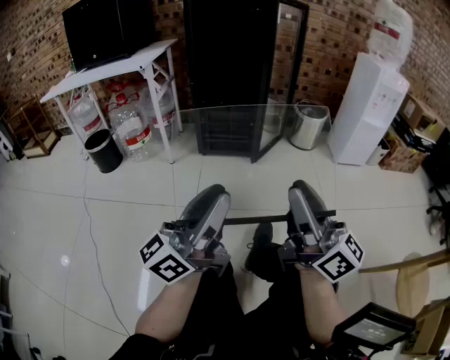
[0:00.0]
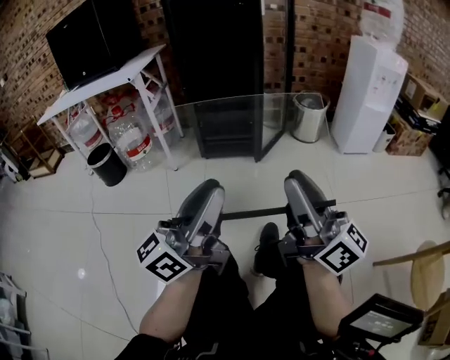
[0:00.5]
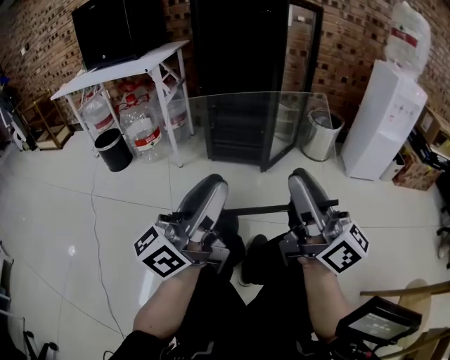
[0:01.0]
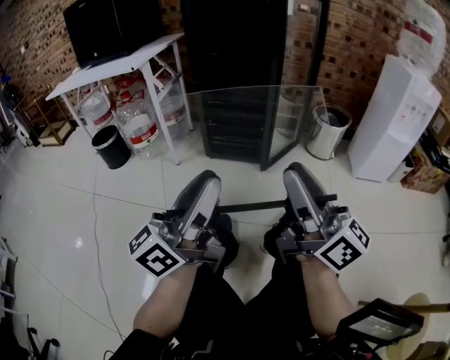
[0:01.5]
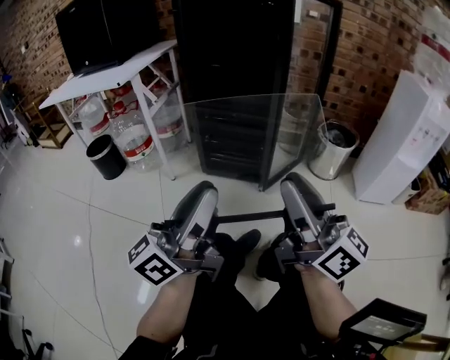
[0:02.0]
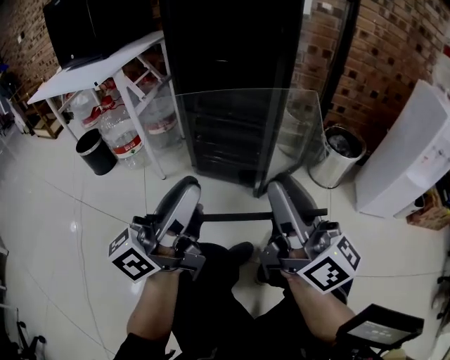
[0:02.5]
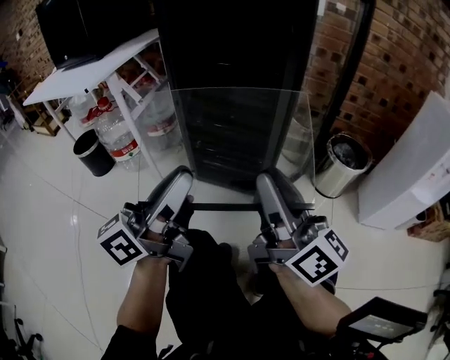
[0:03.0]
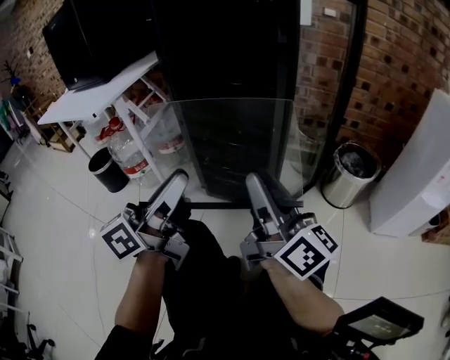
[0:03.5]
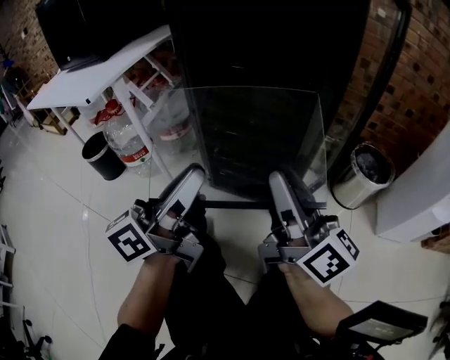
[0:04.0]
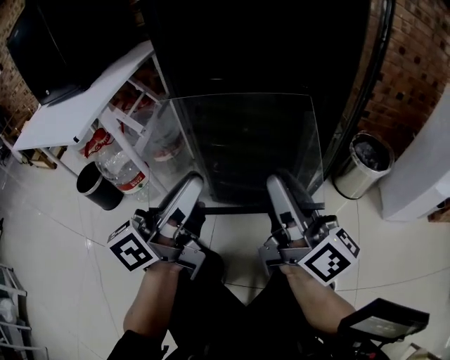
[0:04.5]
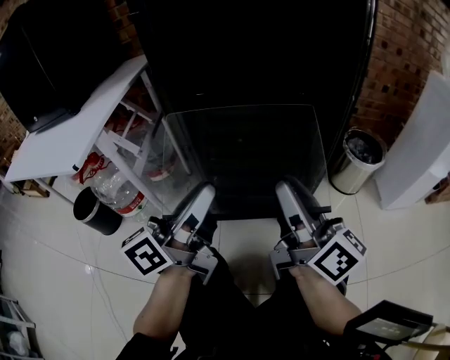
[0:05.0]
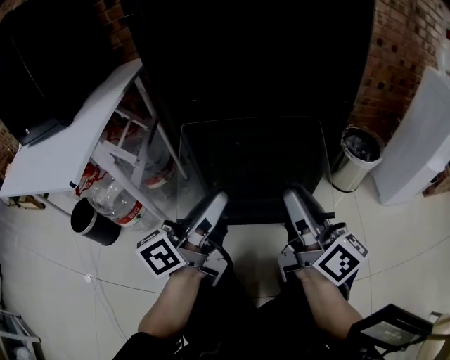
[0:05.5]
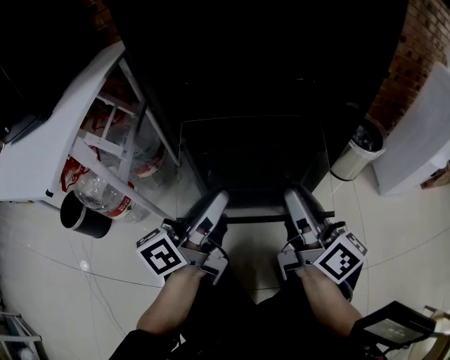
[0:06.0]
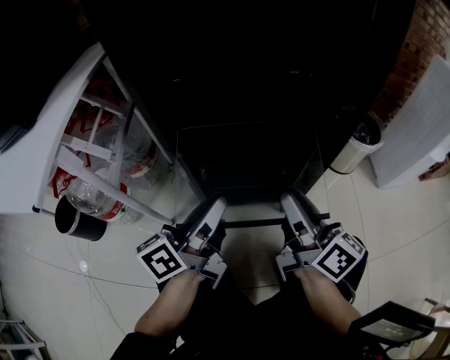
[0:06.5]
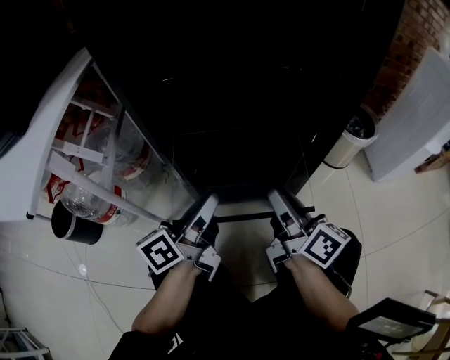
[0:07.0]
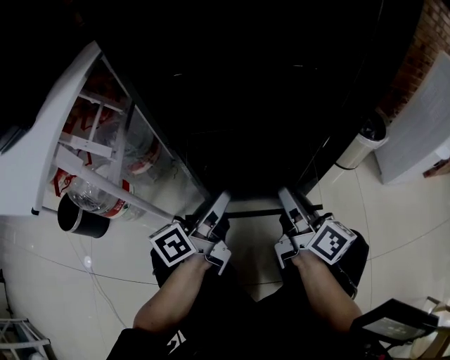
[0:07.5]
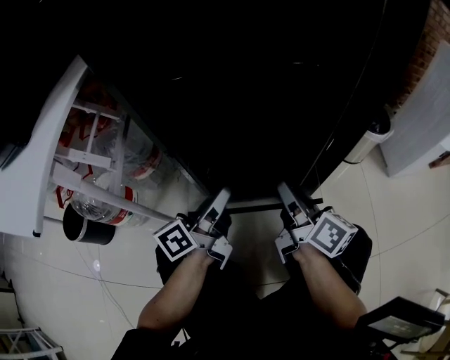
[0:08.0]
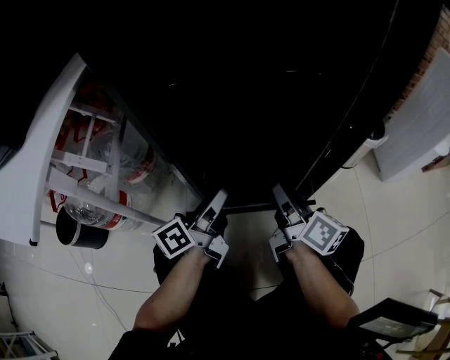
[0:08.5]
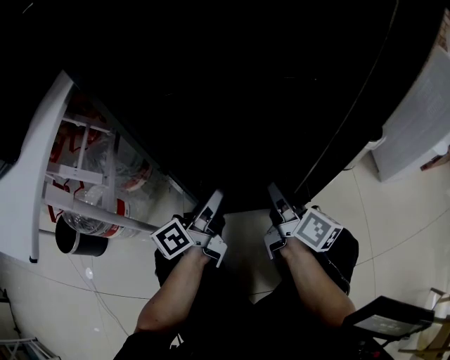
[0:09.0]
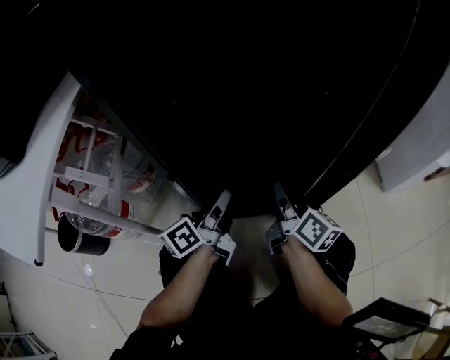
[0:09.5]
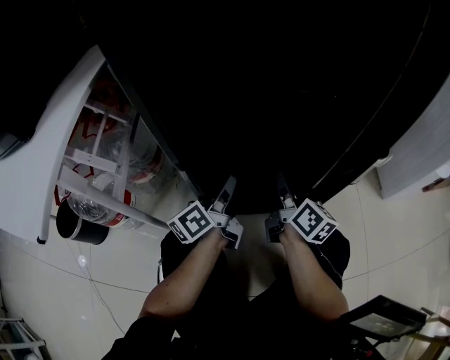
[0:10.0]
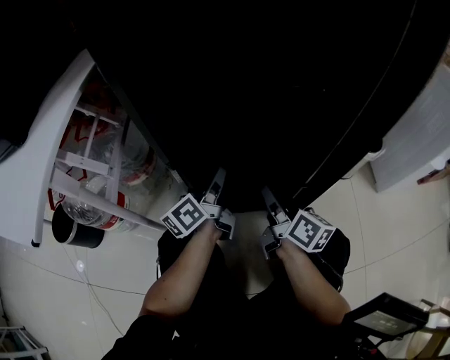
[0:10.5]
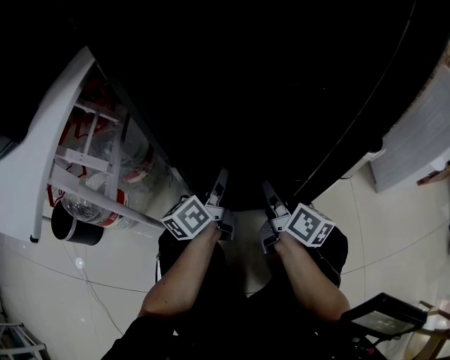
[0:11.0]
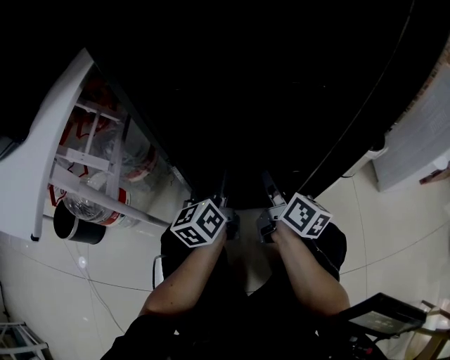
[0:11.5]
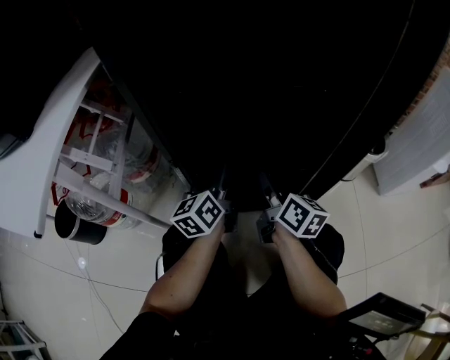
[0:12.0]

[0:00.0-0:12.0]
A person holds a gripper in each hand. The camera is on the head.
0:00.0 to 0:02.0: Both grippers move forward, roughly 25 cm.
0:02.0 to 0:04.0: The two grippers go about 25 cm forward.
0:04.0 to 0:06.0: The right gripper heads downward and forward, covering roughly 10 cm, and rotates some 20 degrees. Meanwhile the left gripper travels forward, downward and to the left by about 15 cm, and rotates roughly 20 degrees.
0:06.0 to 0:08.0: The two grippers go approximately 15 cm downward and forward.
0:08.0 to 0:10.0: The two grippers go about 10 cm forward.
0:10.0 to 0:12.0: The left gripper changes its angle by some 30 degrees, and opens up.

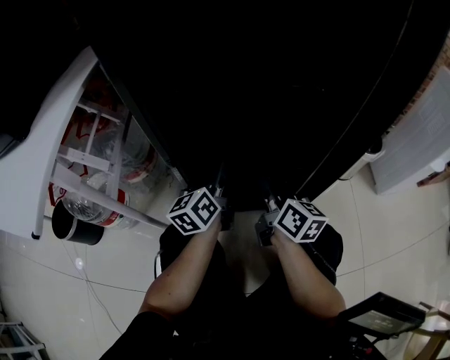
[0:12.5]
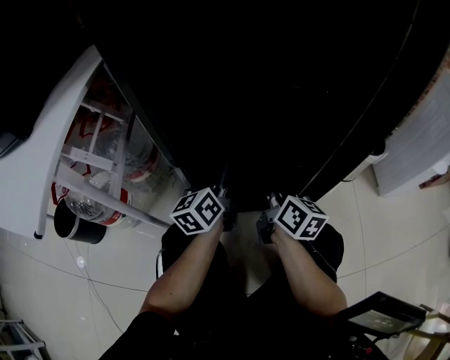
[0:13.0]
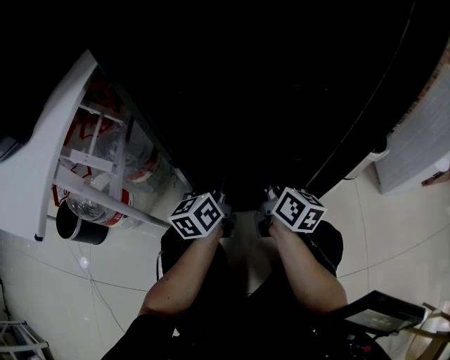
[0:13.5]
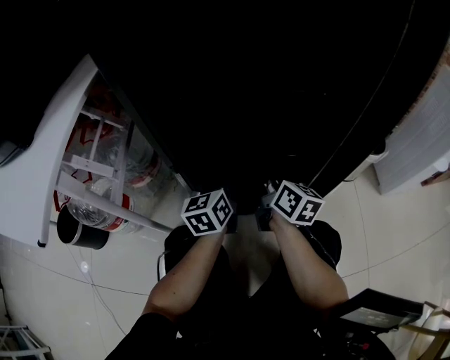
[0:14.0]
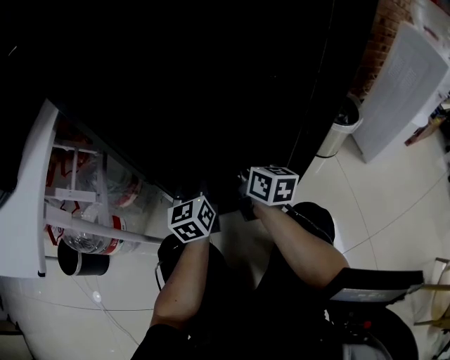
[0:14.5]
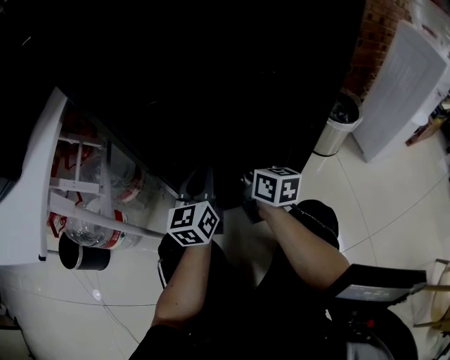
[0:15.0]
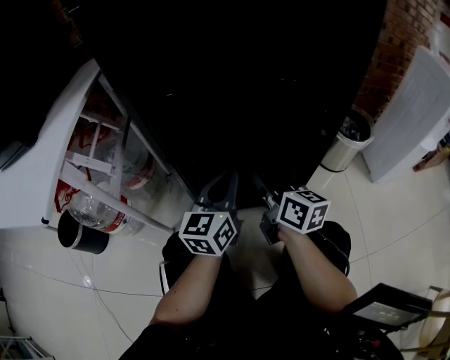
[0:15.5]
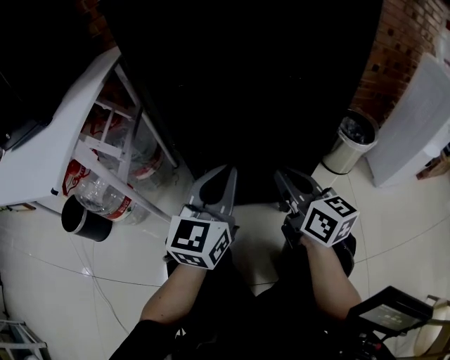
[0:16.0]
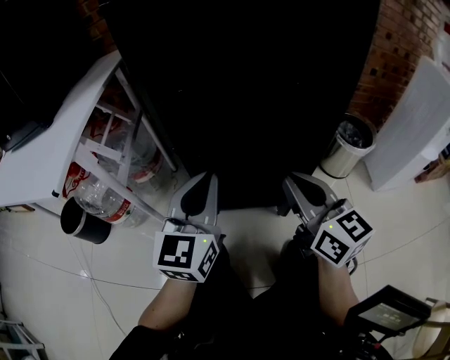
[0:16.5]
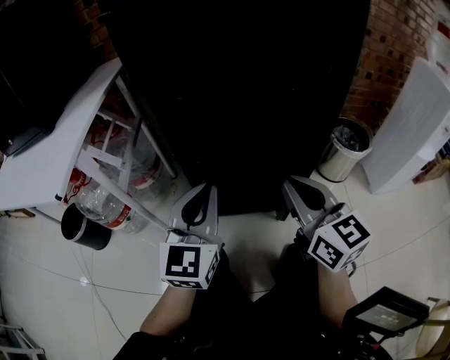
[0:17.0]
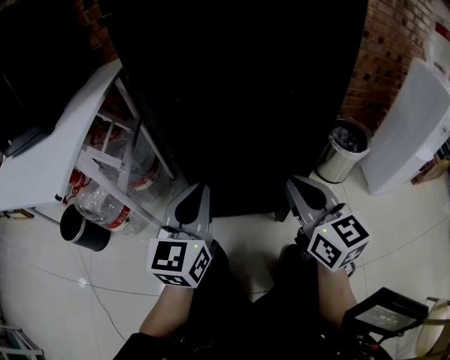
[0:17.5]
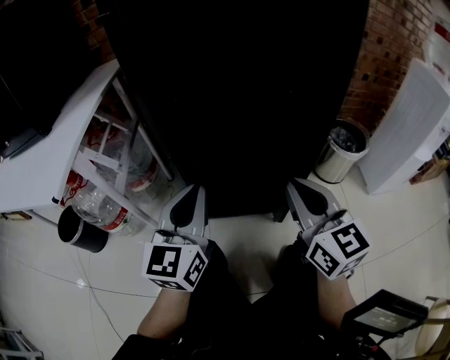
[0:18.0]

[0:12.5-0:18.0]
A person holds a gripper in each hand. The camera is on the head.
0:12.5 to 0:14.5: The right gripper moves forward, about 5 cm. The left gripper swivels approximately 20 degrees, and closes up.
0:14.5 to 0:16.0: Both grippers travel together backward and upward, some 20 cm.
0:16.0 to 0:18.0: The right gripper moves upward, approximately 5 cm, and changes its angle by roughly 20 degrees, while the left gripper shifts approximately 5 cm to the left.

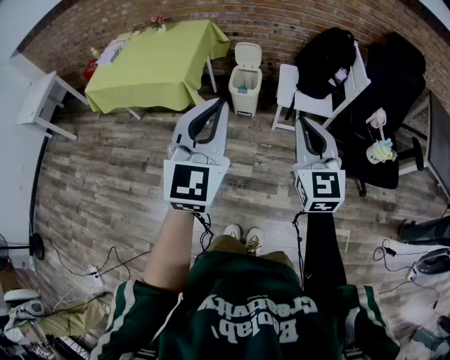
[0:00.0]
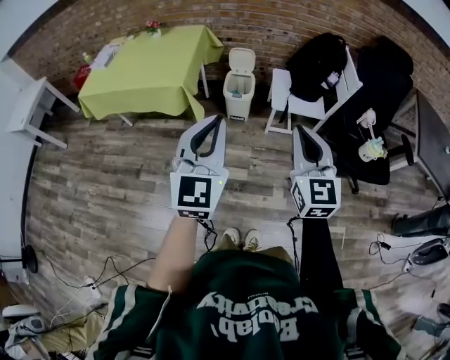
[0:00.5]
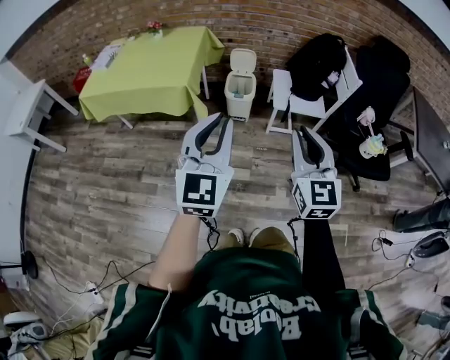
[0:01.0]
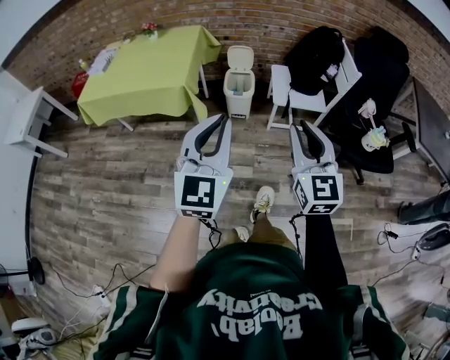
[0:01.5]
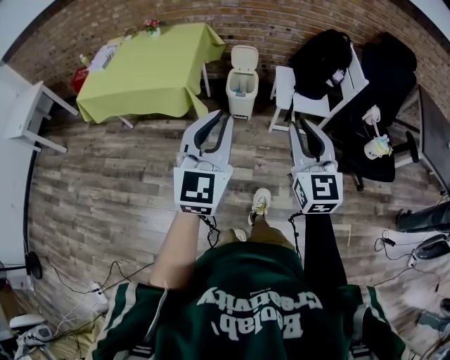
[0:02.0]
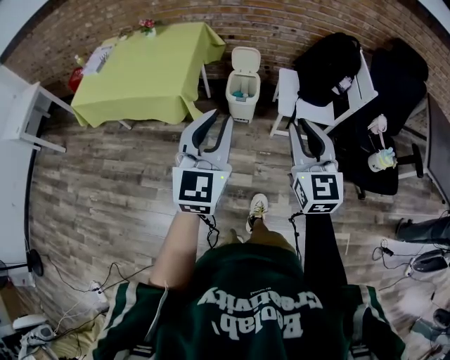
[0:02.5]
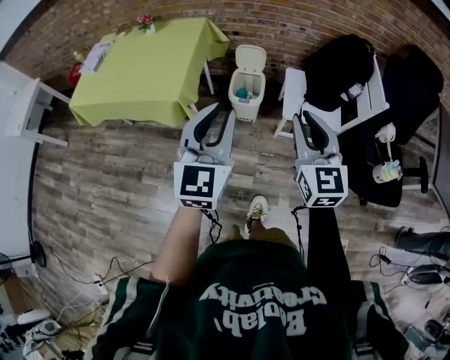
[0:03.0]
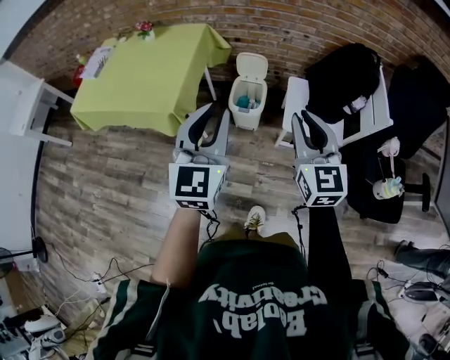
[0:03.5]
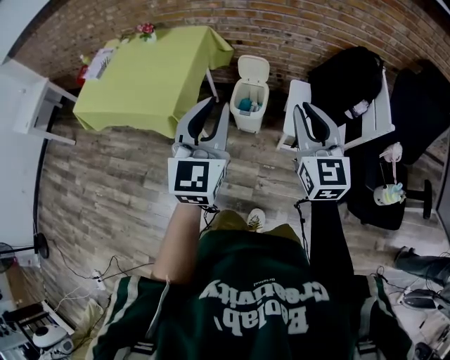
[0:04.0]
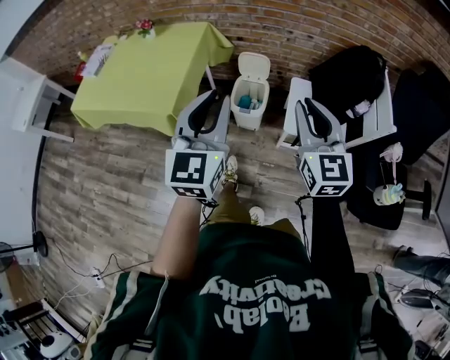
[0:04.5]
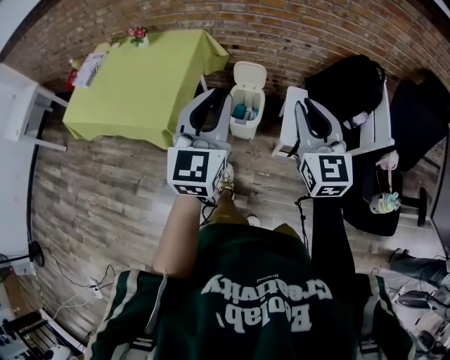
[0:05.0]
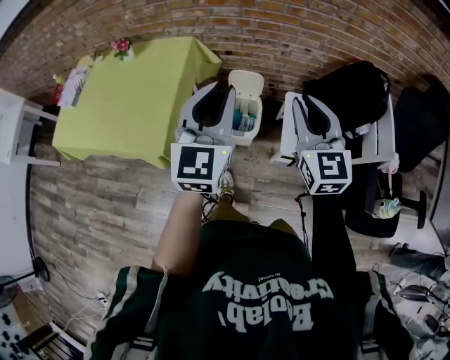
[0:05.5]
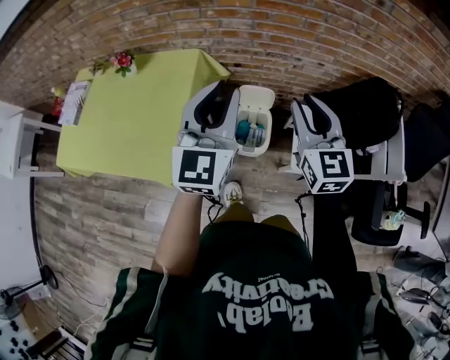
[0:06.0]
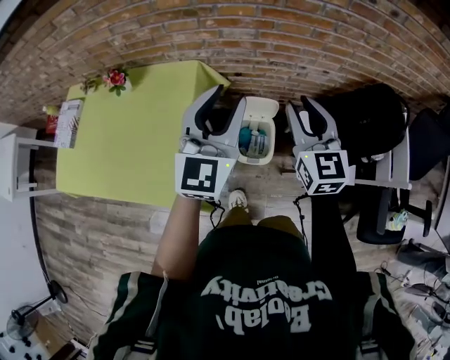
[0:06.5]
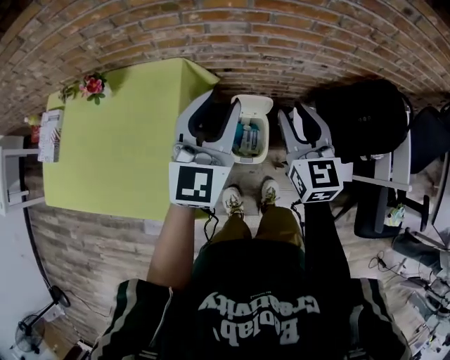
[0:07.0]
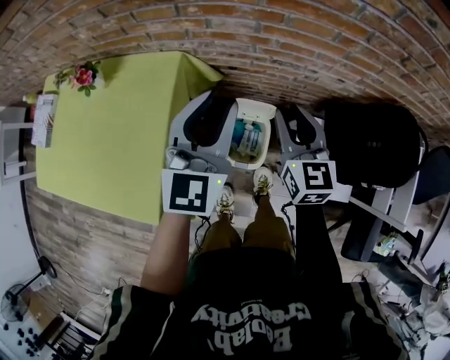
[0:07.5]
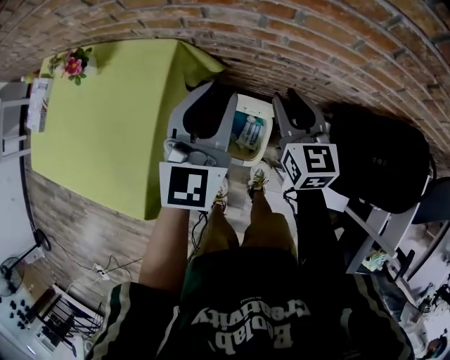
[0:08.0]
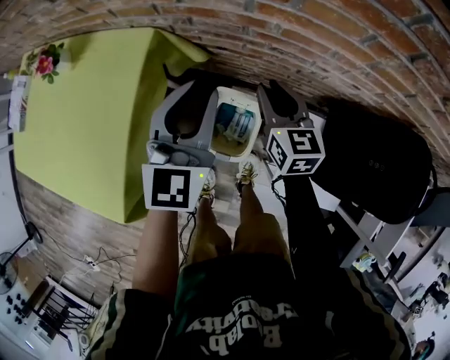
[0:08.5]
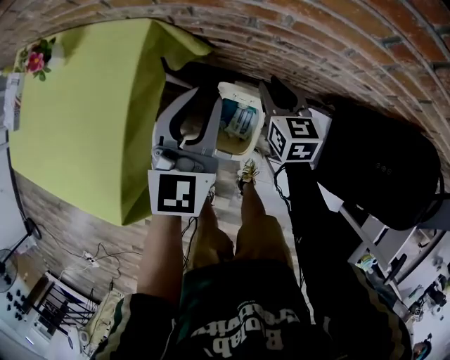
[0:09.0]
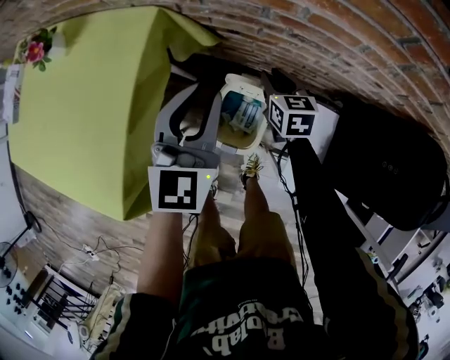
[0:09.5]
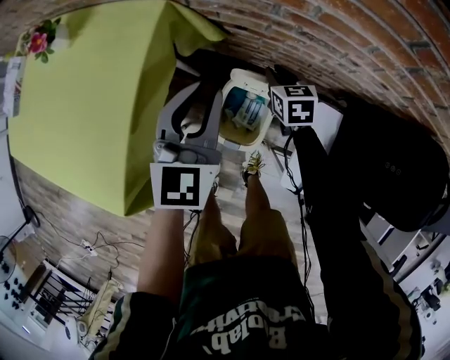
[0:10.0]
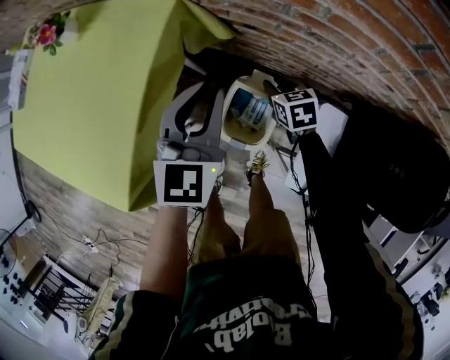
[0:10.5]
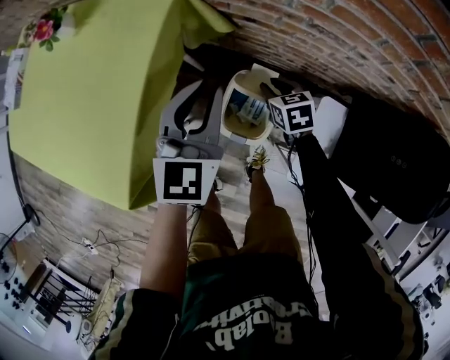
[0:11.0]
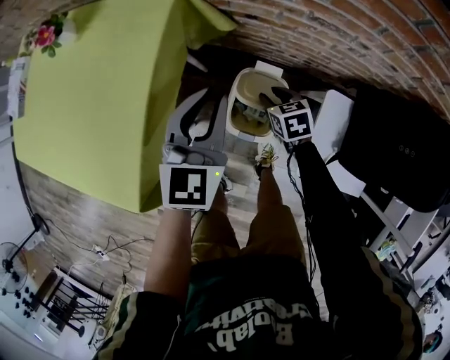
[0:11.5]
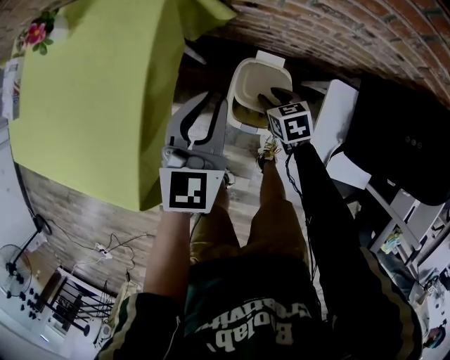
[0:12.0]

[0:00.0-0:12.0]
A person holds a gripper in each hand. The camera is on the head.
0:00.0 to 0:02.0: Both grippers travel together to the left, some 10 cm.
0:02.0 to 0:04.0: The two grippers go roughly 30 cm forward.
0:04.0 to 0:06.0: Both grippers travel together forward, approximately 30 cm.
0:06.0 to 0:08.0: Both grippers move forward and downward, approximately 30 cm.
0:08.0 to 0:10.0: The left gripper heads downward, covering approximately 15 cm, while the right gripper moves downward, roughly 25 cm, and turns by approximately 30 degrees.
0:10.0 to 0:12.0: The right gripper goes about 15 cm backward, to the left and downward, while the left gripper shifts roughly 5 cm backward.
